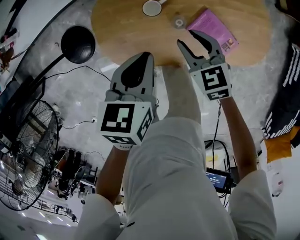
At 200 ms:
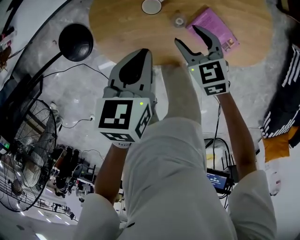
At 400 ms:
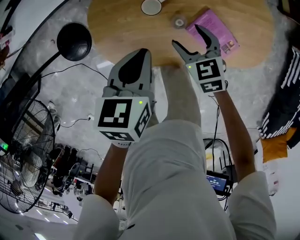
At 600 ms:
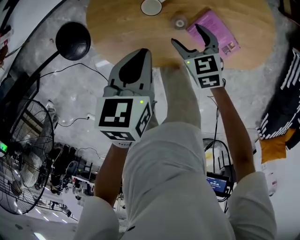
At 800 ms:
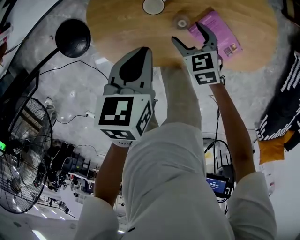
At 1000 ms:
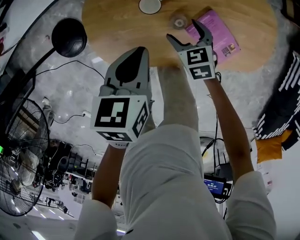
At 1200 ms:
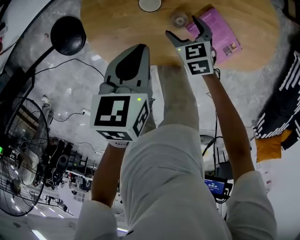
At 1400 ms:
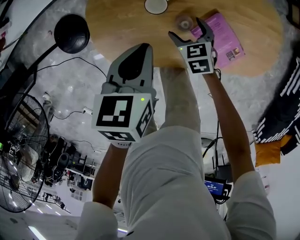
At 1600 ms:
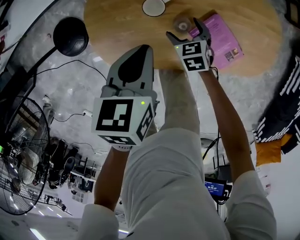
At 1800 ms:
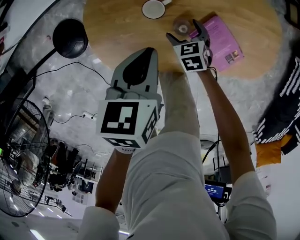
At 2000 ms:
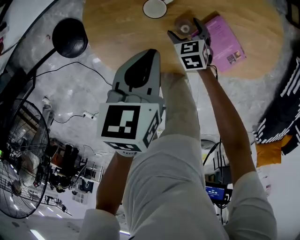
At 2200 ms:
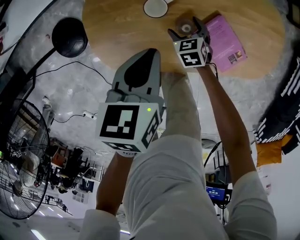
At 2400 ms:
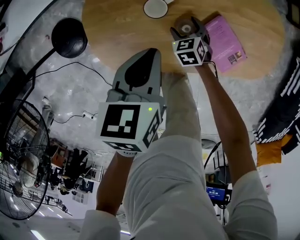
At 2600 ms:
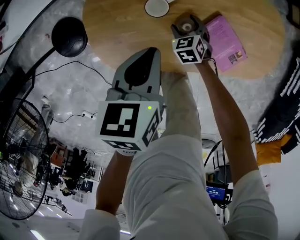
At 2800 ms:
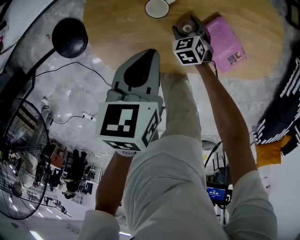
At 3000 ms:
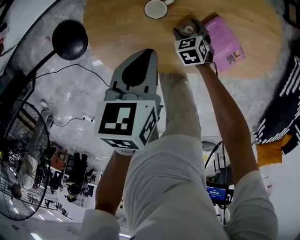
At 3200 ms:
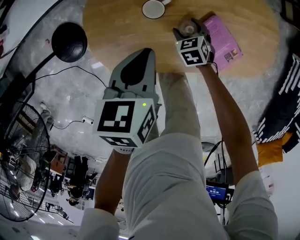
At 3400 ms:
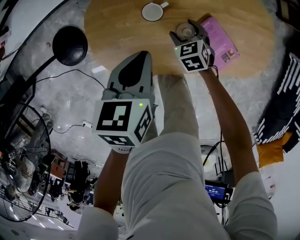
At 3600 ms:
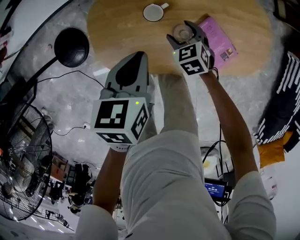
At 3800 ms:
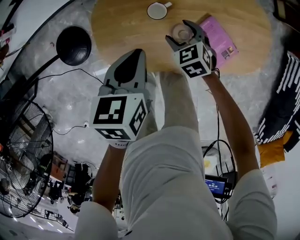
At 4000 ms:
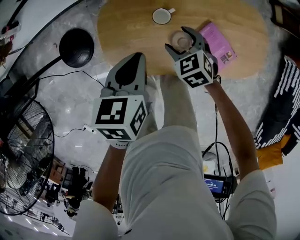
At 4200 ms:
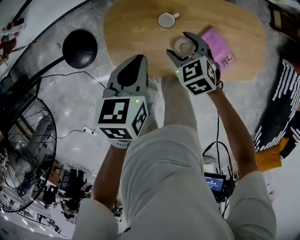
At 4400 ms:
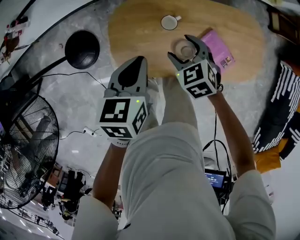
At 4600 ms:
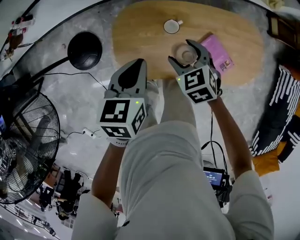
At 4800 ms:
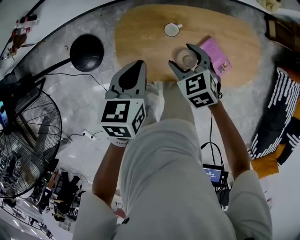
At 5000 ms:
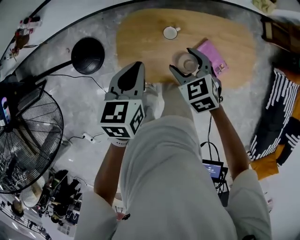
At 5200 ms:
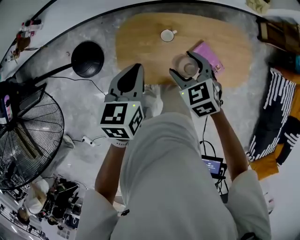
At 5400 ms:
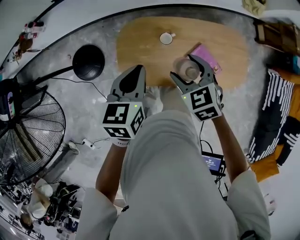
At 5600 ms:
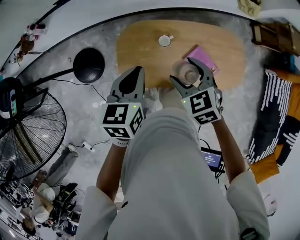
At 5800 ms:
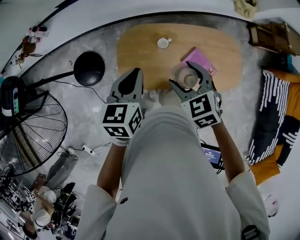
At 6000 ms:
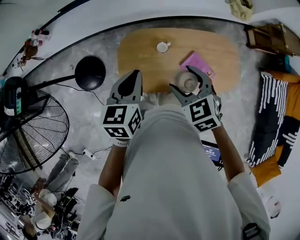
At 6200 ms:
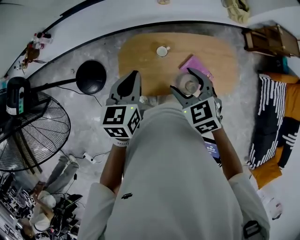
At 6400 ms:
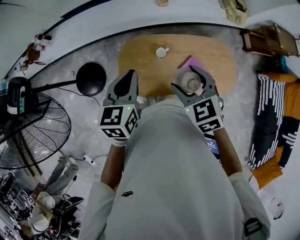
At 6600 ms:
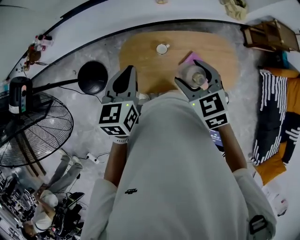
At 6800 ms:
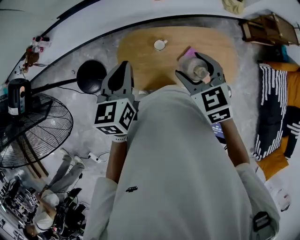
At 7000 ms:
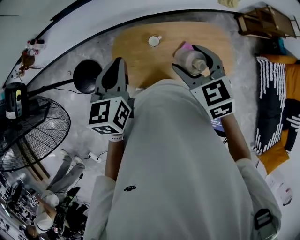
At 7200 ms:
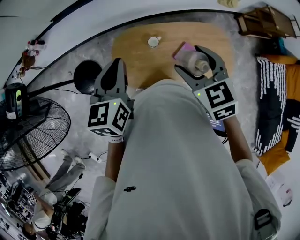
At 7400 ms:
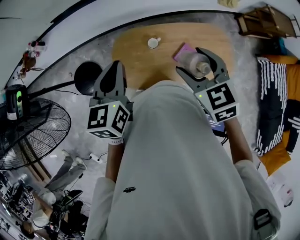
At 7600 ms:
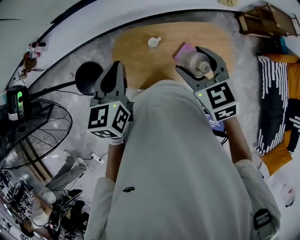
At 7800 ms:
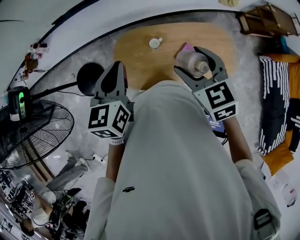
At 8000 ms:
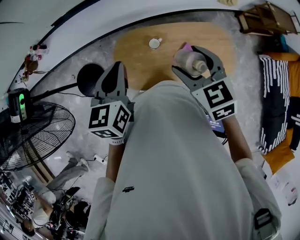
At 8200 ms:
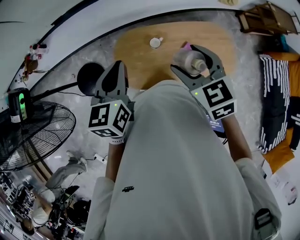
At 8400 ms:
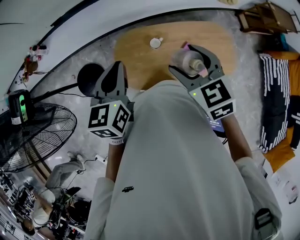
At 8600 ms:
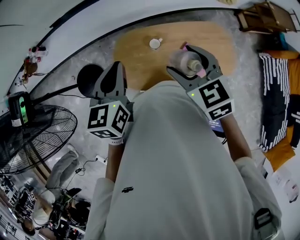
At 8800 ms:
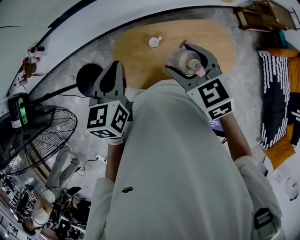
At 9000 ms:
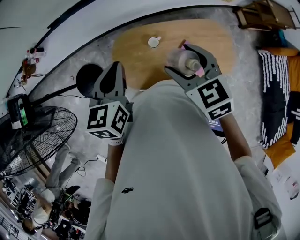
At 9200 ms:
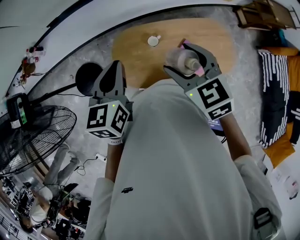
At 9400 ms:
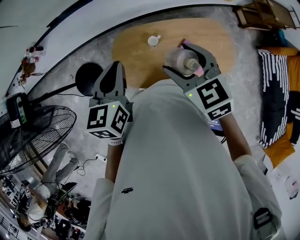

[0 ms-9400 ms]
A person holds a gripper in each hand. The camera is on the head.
0 ms to 1600 ms: The left gripper shifts roughly 5 cm downward, while the right gripper moves downward, some 20 cm, and opens its fingers.
3200 ms to 4800 ms: The right gripper travels upward by about 30 cm; the left gripper shifts approximately 15 cm upward and to the left.
4800 ms to 6200 ms: The grippers both shift upward by approximately 15 cm.
6200 ms to 7800 ms: Both grippers move upward, roughly 5 cm.
7800 ms to 9400 ms: The grippers stay close to where they were, moving slightly.

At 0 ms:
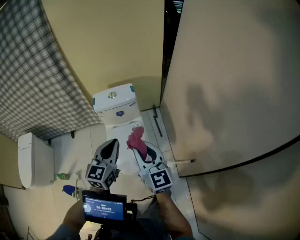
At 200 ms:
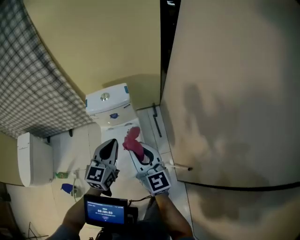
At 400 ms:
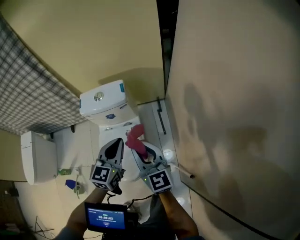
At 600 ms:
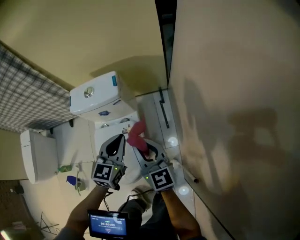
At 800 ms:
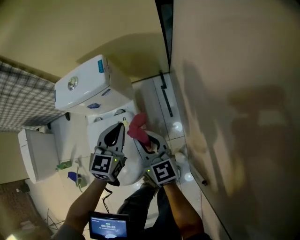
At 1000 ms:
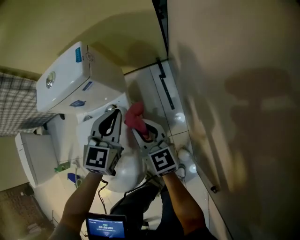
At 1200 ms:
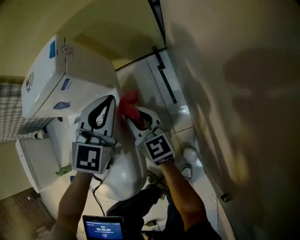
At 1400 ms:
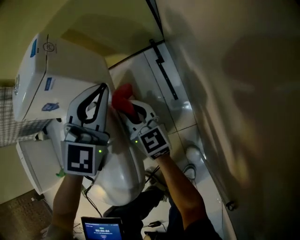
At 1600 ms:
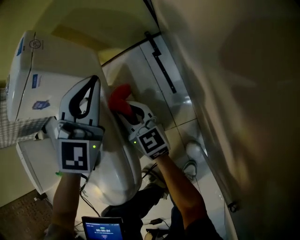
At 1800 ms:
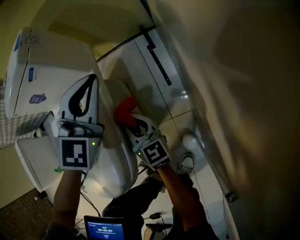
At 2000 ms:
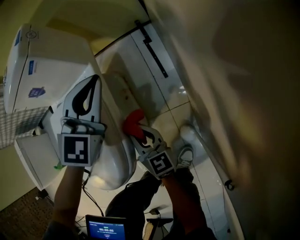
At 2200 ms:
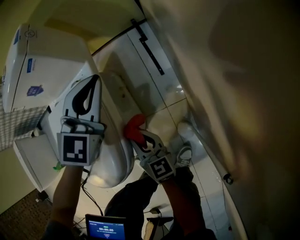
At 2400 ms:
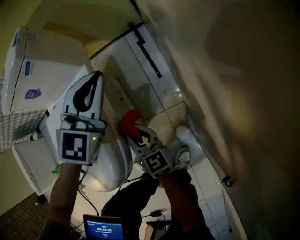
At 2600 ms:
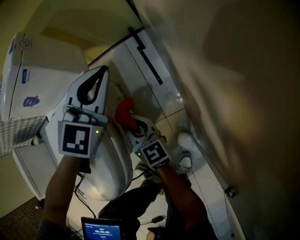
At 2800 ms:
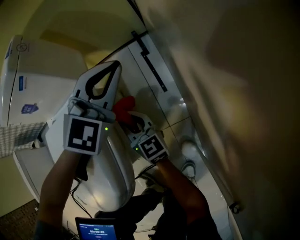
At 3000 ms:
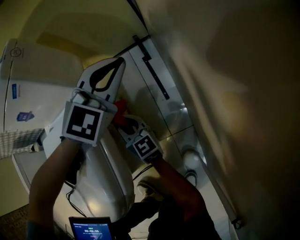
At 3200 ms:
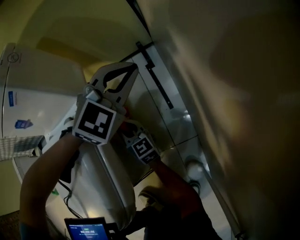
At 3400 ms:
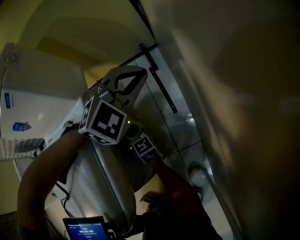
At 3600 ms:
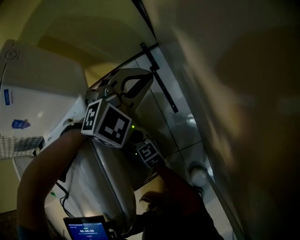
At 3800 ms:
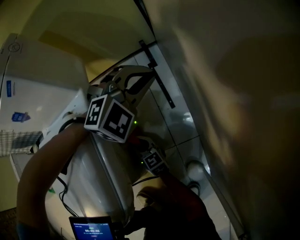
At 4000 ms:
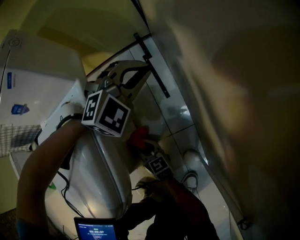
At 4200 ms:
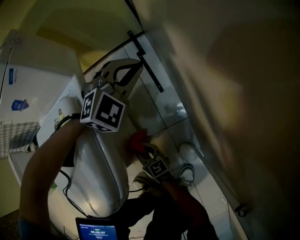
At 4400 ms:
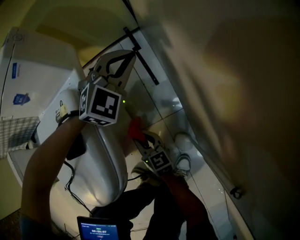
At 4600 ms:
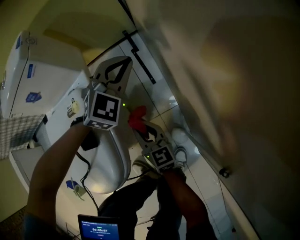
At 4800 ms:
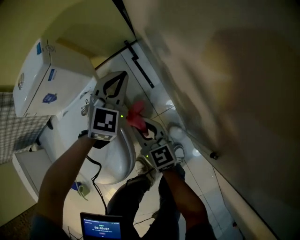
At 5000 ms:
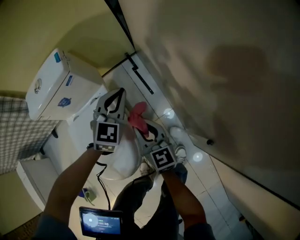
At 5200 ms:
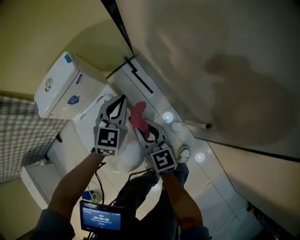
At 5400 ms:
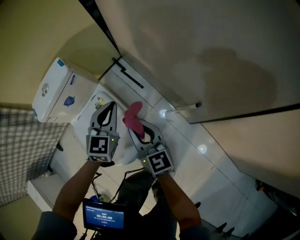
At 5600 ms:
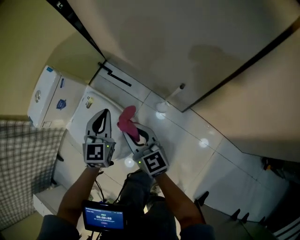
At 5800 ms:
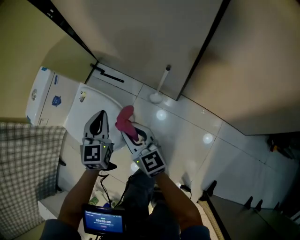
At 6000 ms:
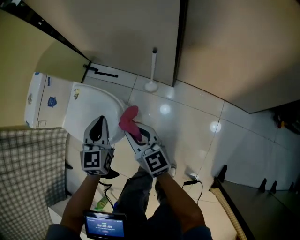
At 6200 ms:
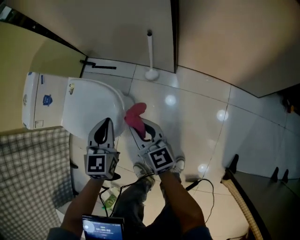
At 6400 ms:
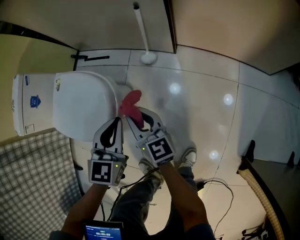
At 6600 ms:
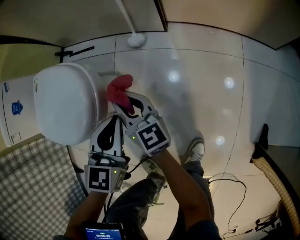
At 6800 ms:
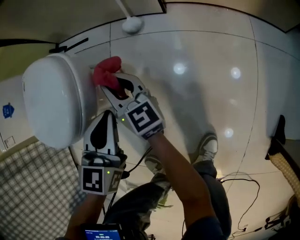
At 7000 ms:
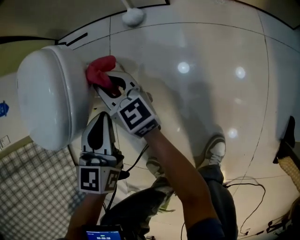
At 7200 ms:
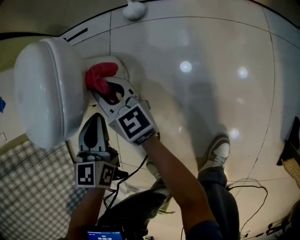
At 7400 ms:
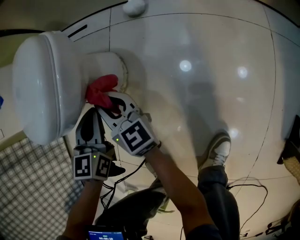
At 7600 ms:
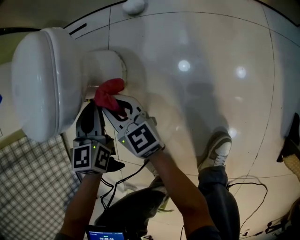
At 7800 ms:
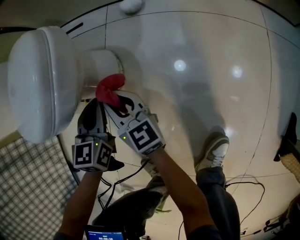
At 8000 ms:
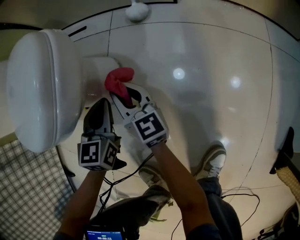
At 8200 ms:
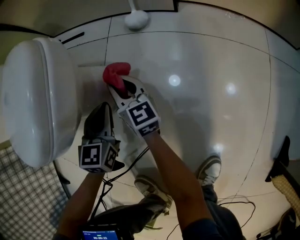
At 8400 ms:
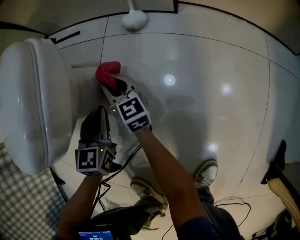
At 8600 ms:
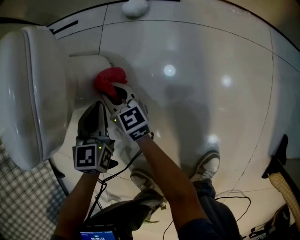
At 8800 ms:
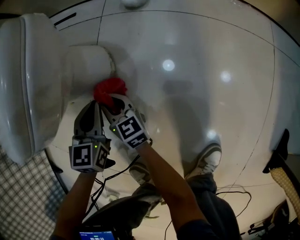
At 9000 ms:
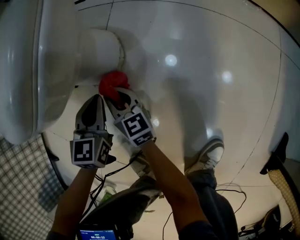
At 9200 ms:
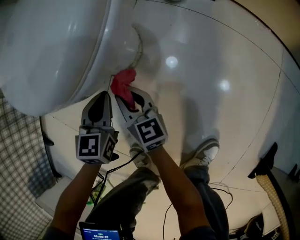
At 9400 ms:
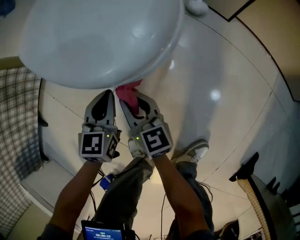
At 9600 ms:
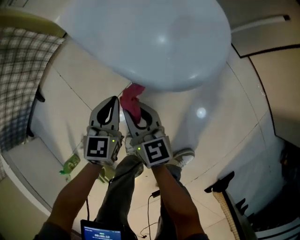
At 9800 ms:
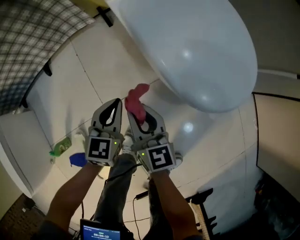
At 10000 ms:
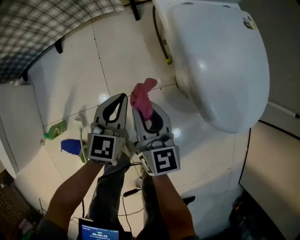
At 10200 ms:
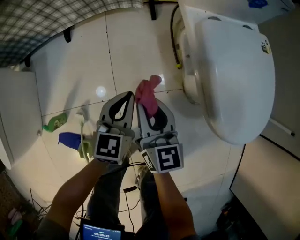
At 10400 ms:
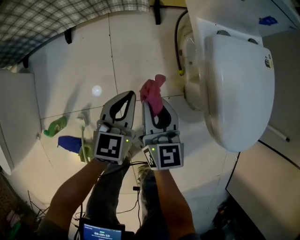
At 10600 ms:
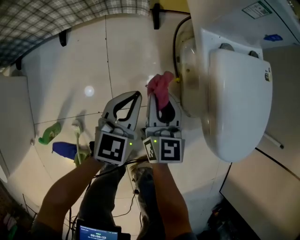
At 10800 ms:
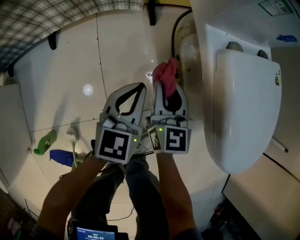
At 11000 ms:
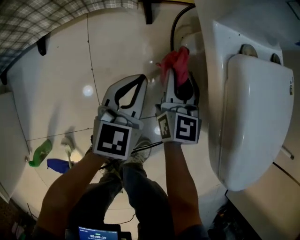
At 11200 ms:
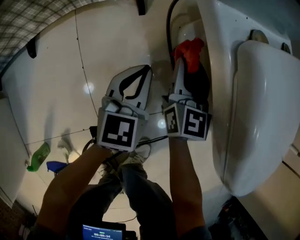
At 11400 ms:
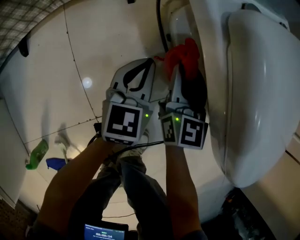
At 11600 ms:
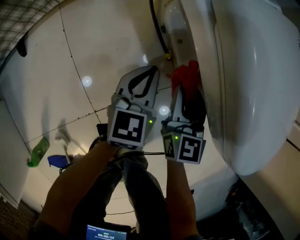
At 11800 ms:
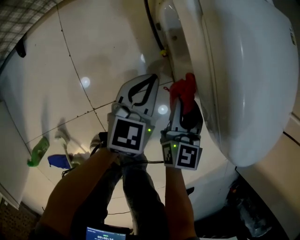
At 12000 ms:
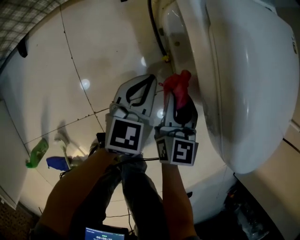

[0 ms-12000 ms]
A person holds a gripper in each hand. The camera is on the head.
0 ms to 1600 ms: The right gripper goes approximately 70 cm downward and forward, while the left gripper travels downward, forward and to the right by about 60 cm, and swivels roughly 40 degrees.
1600 ms to 3000 ms: The right gripper shifts about 10 cm downward, and goes backward and returns, some 20 cm each way, while the left gripper heads downward and to the right, covering about 10 cm.
3000 ms to 4400 ms: The right gripper shifts some 15 cm backward. The left gripper ends up about 5 cm from where it was.
4400 ms to 6000 ms: The left gripper changes place by about 50 cm, and changes its angle by some 30 degrees, while the right gripper heads upward, covering roughly 40 cm, and turns by about 50 degrees.
6000 ms to 7600 ms: The left gripper is displaced downward by some 35 cm. The right gripper travels downward and to the left by approximately 40 cm.
7600 ms to 9000 ms: The right gripper shifts about 15 cm downward and to the left, and goes forward and returns, about 15 cm each way. The left gripper shifts approximately 10 cm downward.
9000 ms to 10400 ms: The left gripper moves roughly 40 cm, and swivels roughly 60 degrees. Meanwhile the right gripper changes place by roughly 40 cm, and turns by some 40 degrees.
10400 ms to 12000 ms: The left gripper travels downward, to the right and forward by approximately 20 cm; the right gripper moves downward and to the right, roughly 20 cm, reaches approximately 20 cm forward, then returns, and swivels roughly 20 degrees.

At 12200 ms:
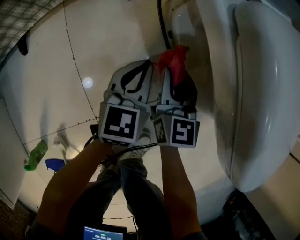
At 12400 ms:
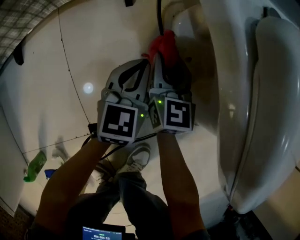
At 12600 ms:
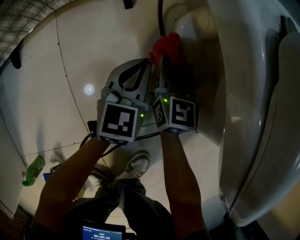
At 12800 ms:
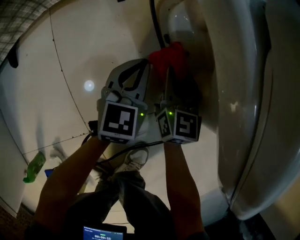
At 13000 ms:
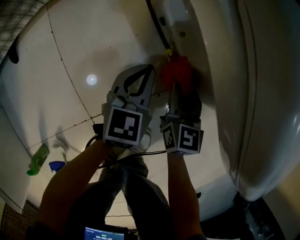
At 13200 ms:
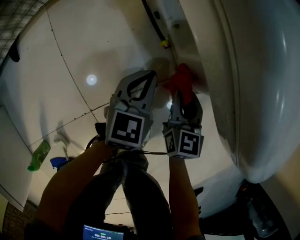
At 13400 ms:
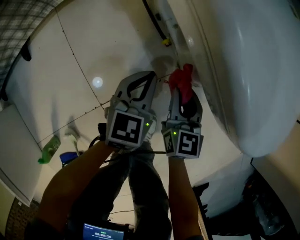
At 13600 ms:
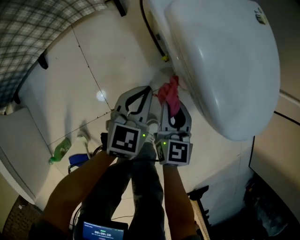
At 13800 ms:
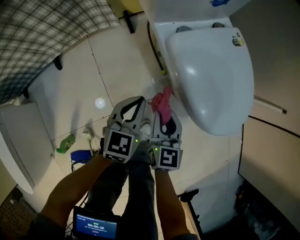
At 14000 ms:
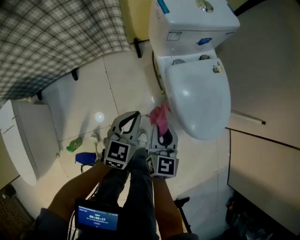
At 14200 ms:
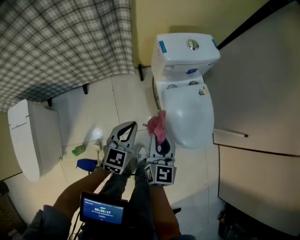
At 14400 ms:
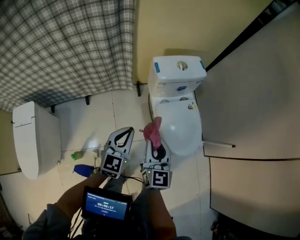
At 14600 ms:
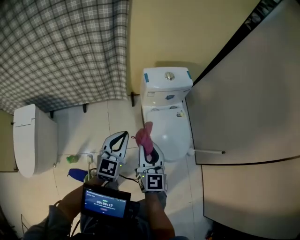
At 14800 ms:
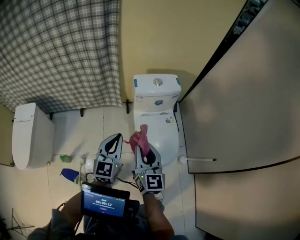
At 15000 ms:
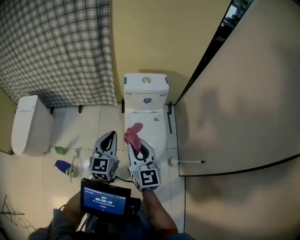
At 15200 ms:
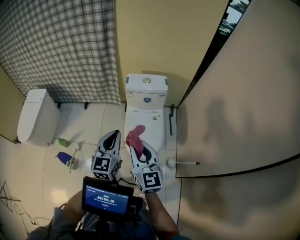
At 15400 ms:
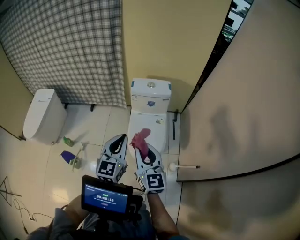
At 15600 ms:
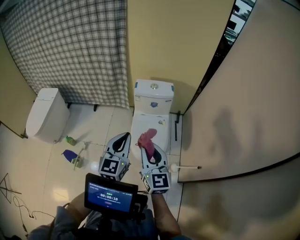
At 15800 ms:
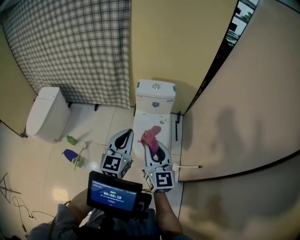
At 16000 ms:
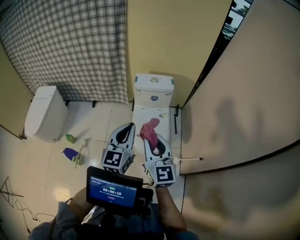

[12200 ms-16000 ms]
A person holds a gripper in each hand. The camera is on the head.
12200 ms to 13400 ms: The grippers both shift backward and to the right by about 15 cm.
13400 ms to 14800 ms: The grippers both shift upward by approximately 60 cm. The left gripper swivels some 40 degrees. Meanwhile the right gripper changes its angle by about 40 degrees.
14800 ms to 16000 ms: Both grippers move backward, to the right and upward, about 25 cm.
